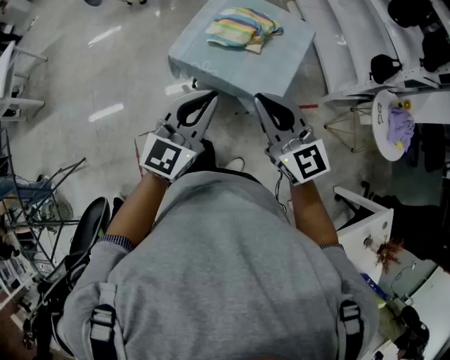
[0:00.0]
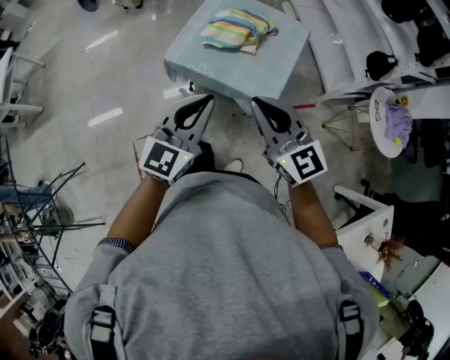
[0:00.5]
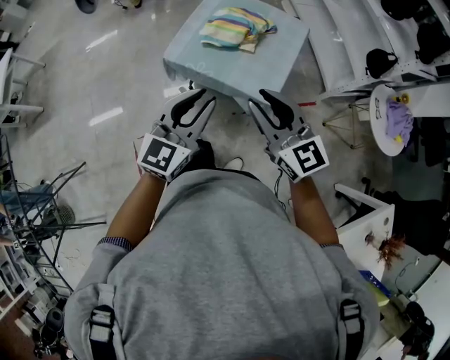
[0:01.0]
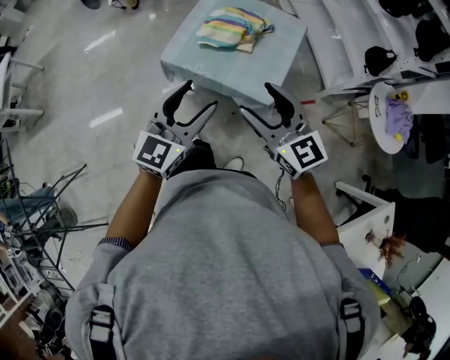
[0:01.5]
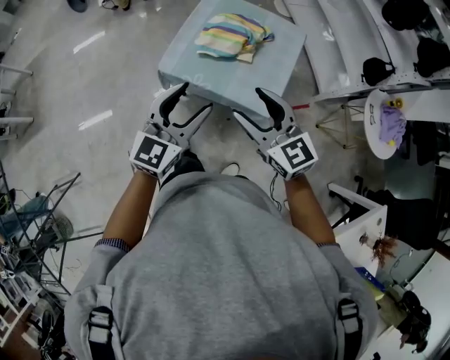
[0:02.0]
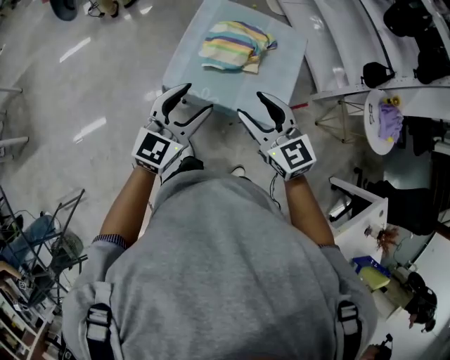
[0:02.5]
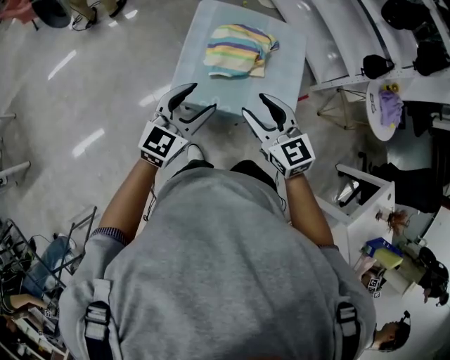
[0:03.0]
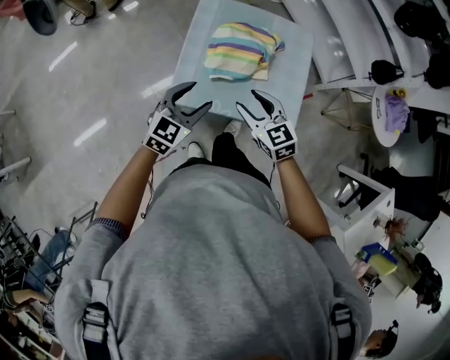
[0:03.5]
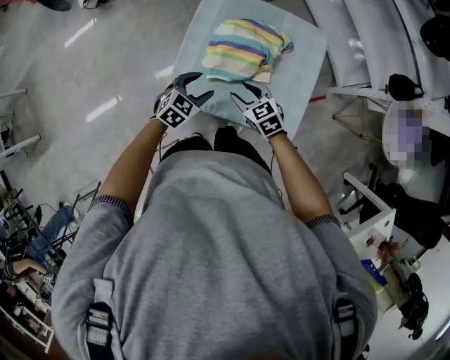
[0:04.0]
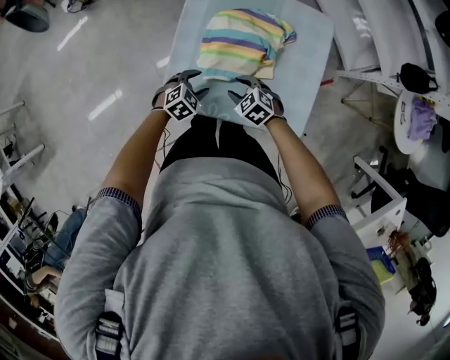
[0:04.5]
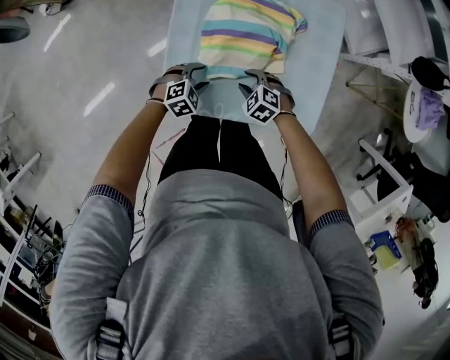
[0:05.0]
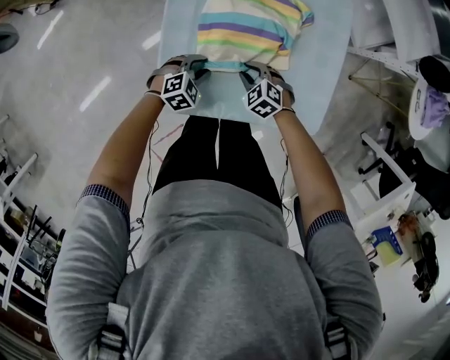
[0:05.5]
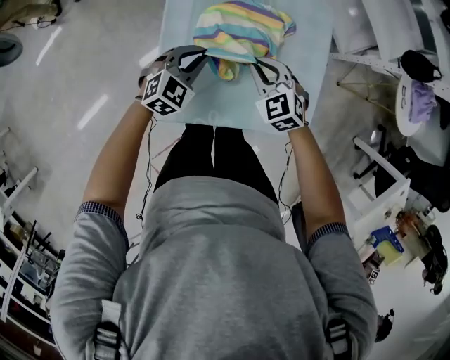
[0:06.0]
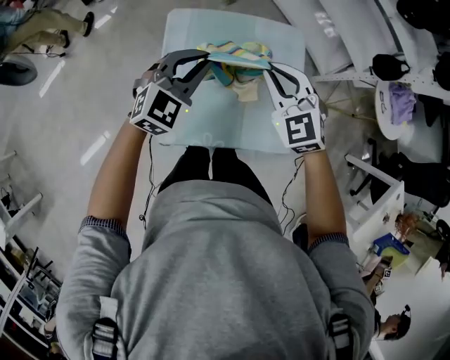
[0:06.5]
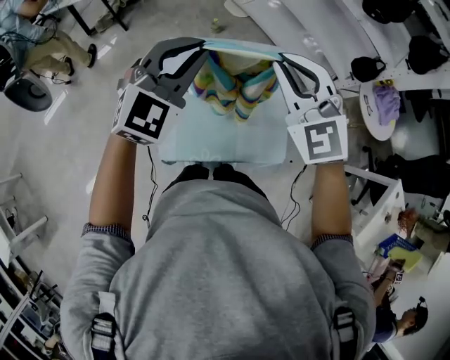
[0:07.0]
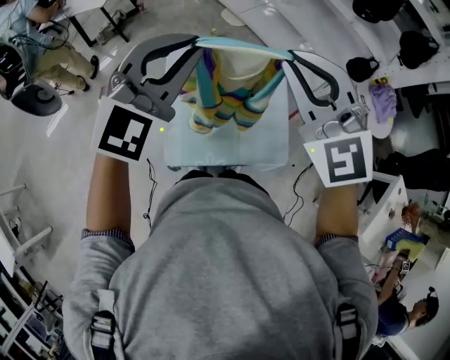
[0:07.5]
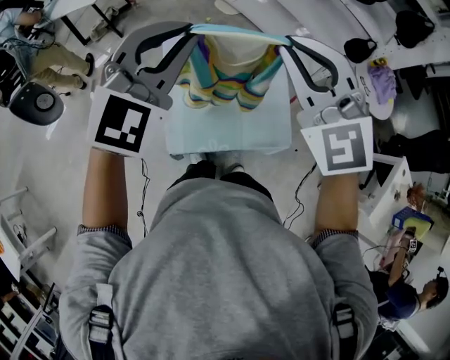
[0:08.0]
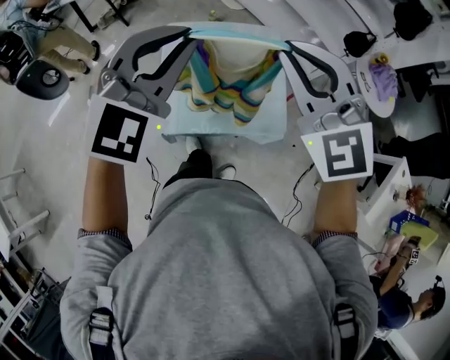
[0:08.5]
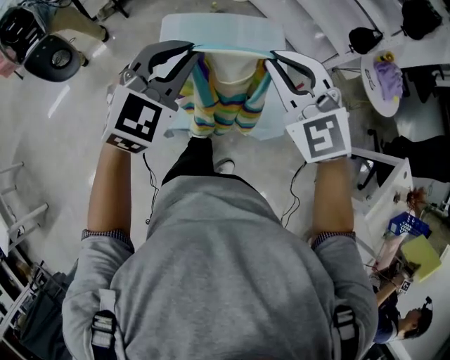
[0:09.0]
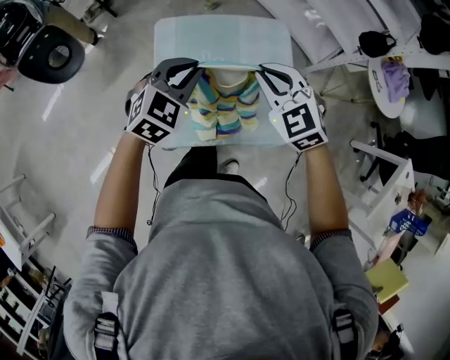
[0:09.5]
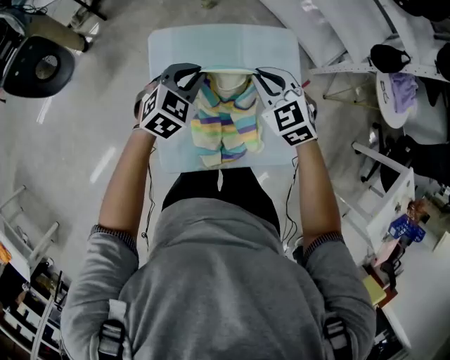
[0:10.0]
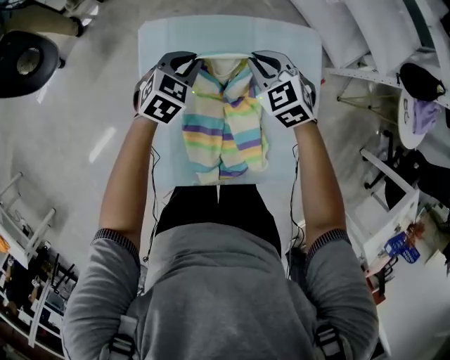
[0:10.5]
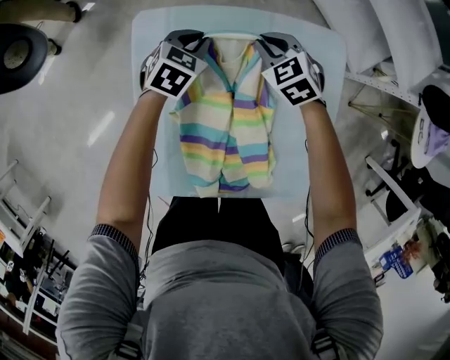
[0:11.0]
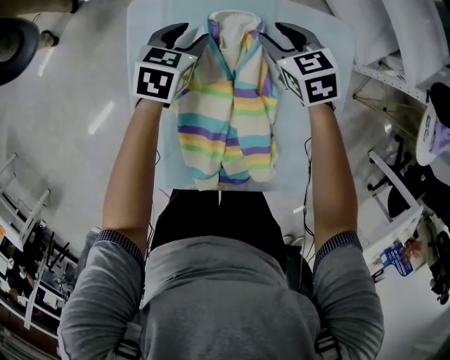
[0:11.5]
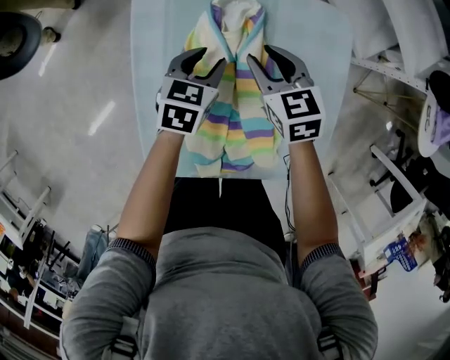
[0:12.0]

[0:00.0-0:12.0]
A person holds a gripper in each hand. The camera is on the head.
0:00.0 to 0:02.0: Both grippers move forward, roughly 10 cm. The left gripper opens up. The right gripper opens up.
0:02.0 to 0:04.0: The grippers both shift forward and downward by about 40 cm. The right gripper turns by about 30 degrees. The left gripper tips its fingers downward by some 40 degrees.
0:04.0 to 0:06.0: The two grippers go approximately 15 cm forward. The right gripper goes downward and returns, approximately 20 cm each way, rotates about 20 degrees, and closes up, while the left gripper moves approximately 20 cm downward and comes back, changes its angle by about 20 degrees, and closes up.
0:06.0 to 0:08.0: The two grippers go some 50 cm upward. The left gripper swivels roughly 30 degrees; the right gripper points its fingers roughly 30 degrees further upward.
0:08.0 to 0:10.0: Both grippers travel together downward and forward, some 40 cm. The left gripper angles its fingers downward, by about 30 degrees. Meanwhile the right gripper points its fingers roughly 30 degrees further downward.
0:10.0 to 0:12.0: The grippers both shift downward by about 20 cm. The left gripper rotates roughly 40 degrees, and opens. Meanwhile the right gripper rotates roughly 20 degrees, and opens its fingers.

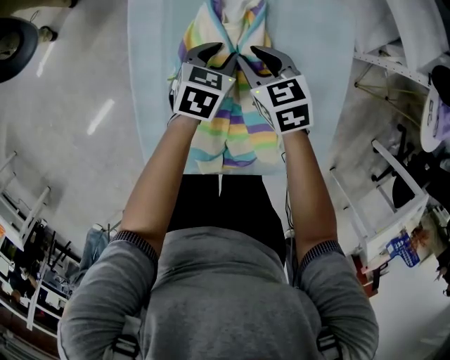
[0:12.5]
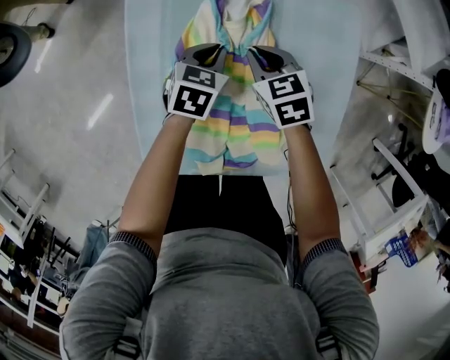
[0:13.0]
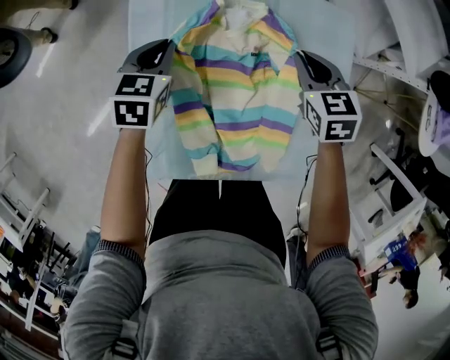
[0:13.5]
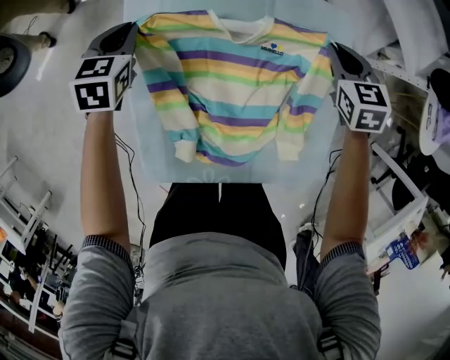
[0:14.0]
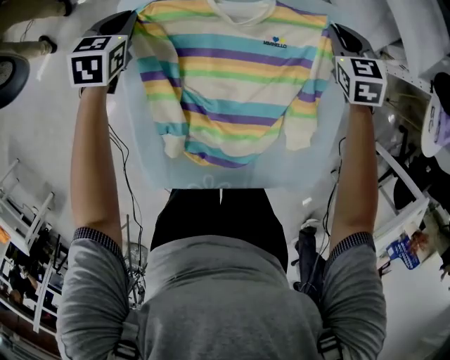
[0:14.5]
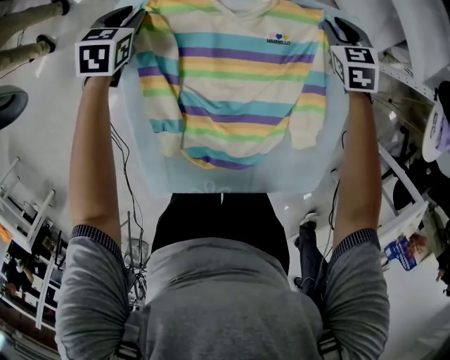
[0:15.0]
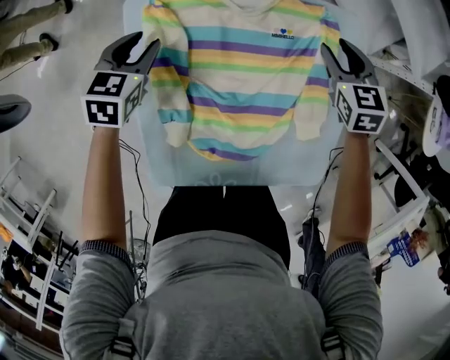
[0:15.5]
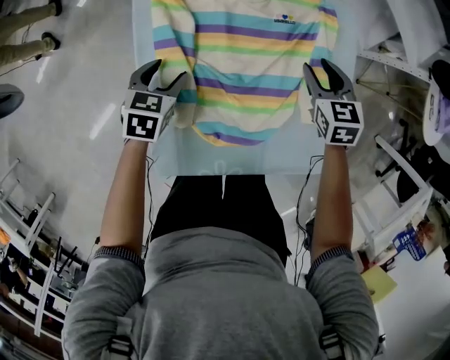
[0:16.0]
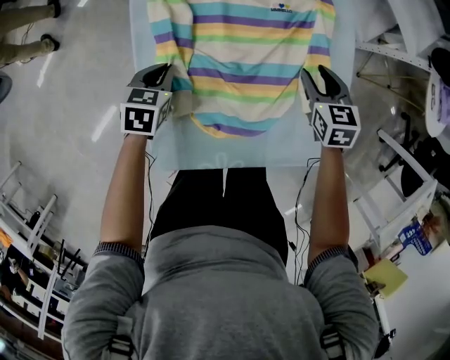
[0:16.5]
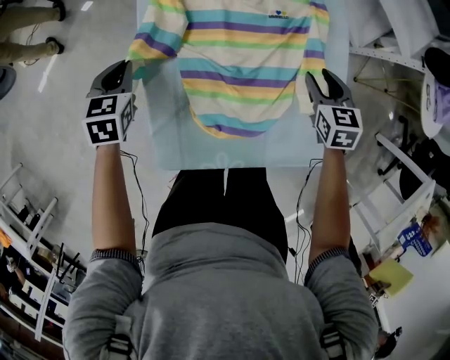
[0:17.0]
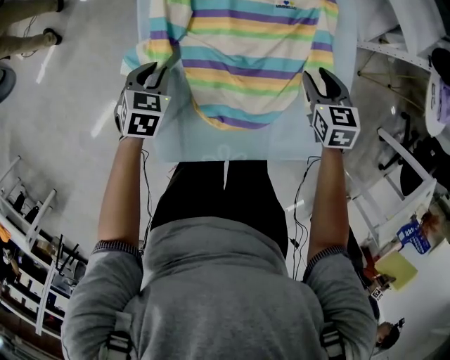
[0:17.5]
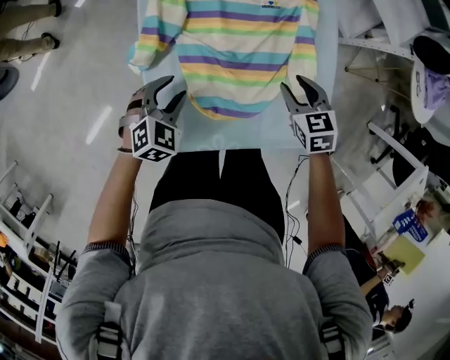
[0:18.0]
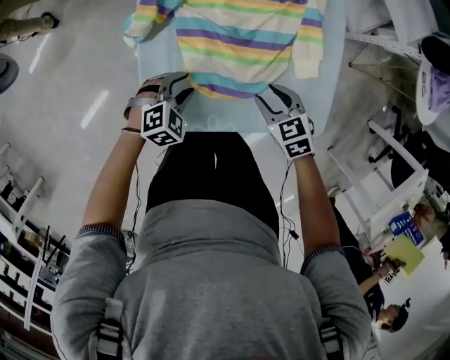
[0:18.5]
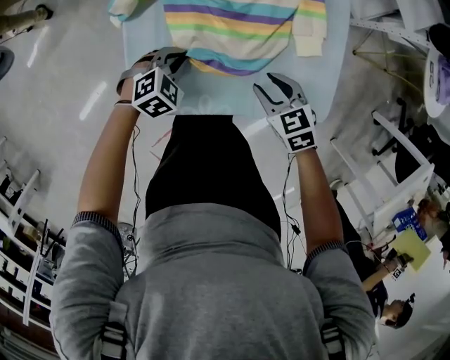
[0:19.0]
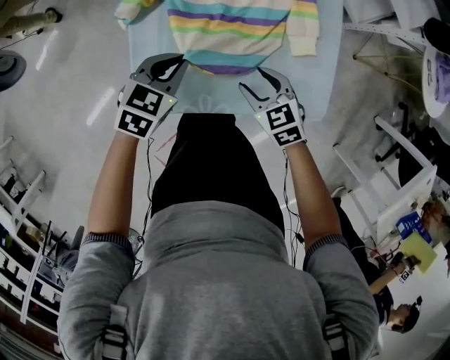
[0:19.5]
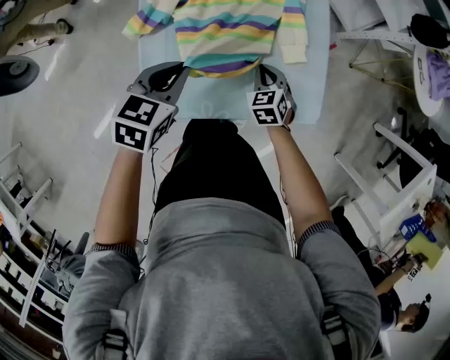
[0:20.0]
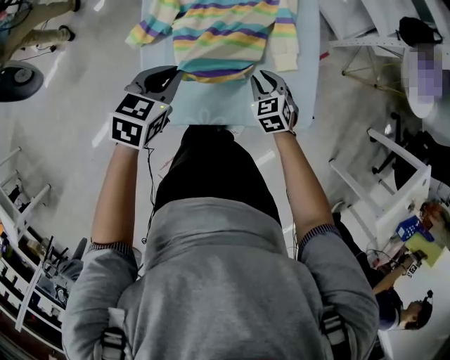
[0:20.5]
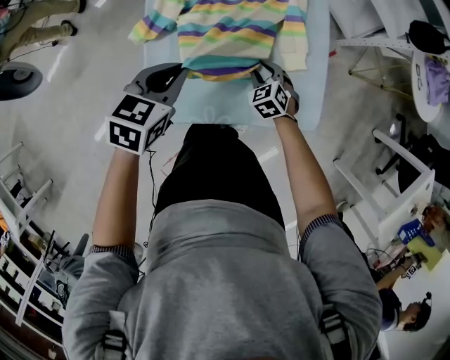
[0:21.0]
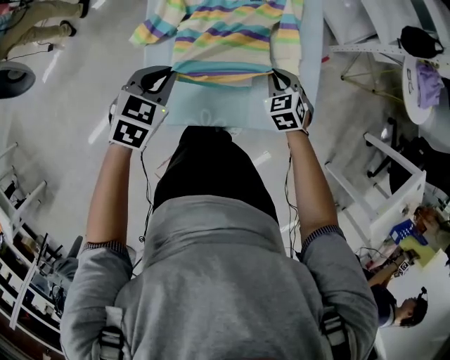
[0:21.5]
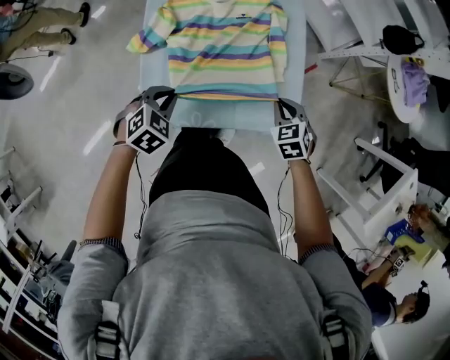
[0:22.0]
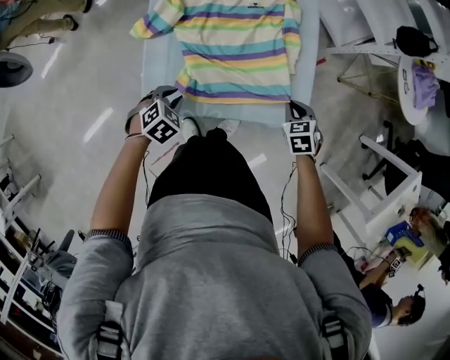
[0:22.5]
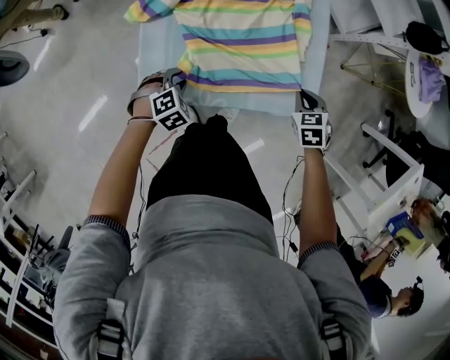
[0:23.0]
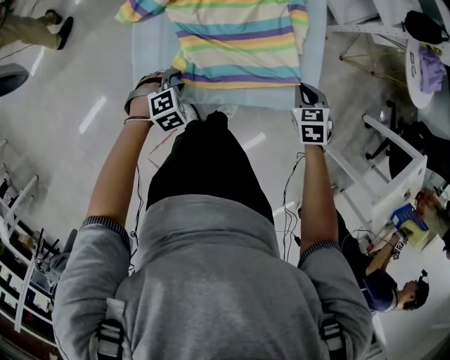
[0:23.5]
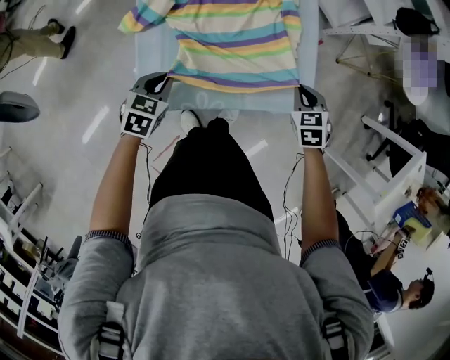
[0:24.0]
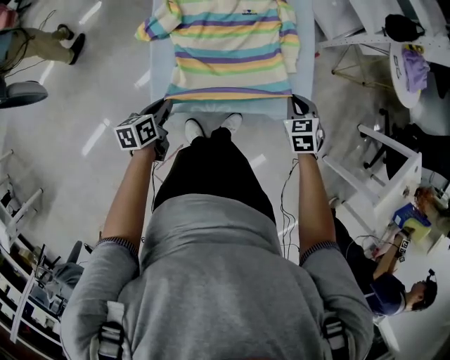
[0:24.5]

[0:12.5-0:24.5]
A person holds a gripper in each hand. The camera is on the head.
0:12.5 to 0:14.5: The right gripper moves to the right and forward, approximately 25 cm, and swivels about 20 degrees. Meanwhile the left gripper shifts about 25 cm to the left and forward.
0:14.5 to 0:16.5: The two grippers go some 20 cm backward. The right gripper opens up. Meanwhile the left gripper opens, then closes again.
0:16.5 to 0:18.5: The right gripper is displaced backward and to the left by approximately 20 cm, and turns by approximately 20 degrees; the left gripper shifts roughly 20 cm backward and to the right, rolls clockwise, seen from behind, by roughly 40 degrees, and opens up.
0:18.5 to 0:20.5: The right gripper moves approximately 5 cm, while the left gripper heads upward, covering about 20 cm, swivels some 40 degrees, and closes up.
0:20.5 to 0:22.5: The right gripper moves to the right and backward, roughly 15 cm, while the left gripper travels downward and backward by about 15 cm, and turns by about 30 degrees.
0:22.5 to 0:24.5: The right gripper moves upward, some 5 cm; the left gripper is displaced to the left by some 10 cm, reaches some 5 cm downward, then returns, and rotates around the line of its fingers by approximately 60 degrees, counterclockwise from behind.

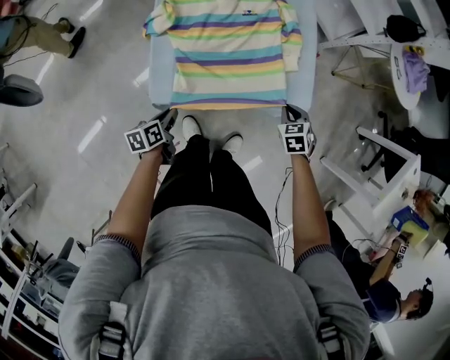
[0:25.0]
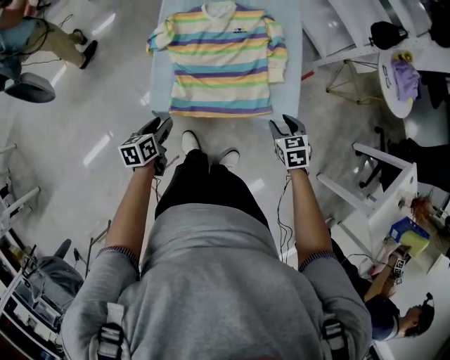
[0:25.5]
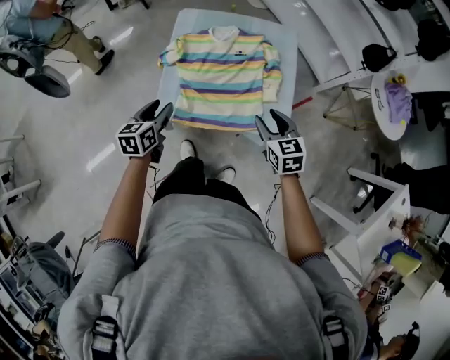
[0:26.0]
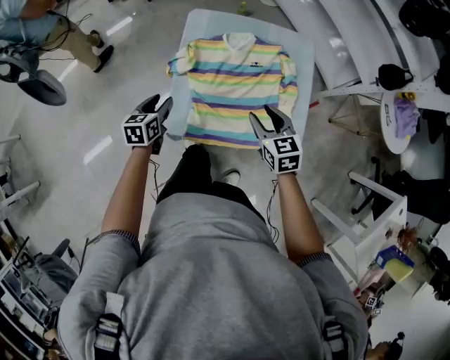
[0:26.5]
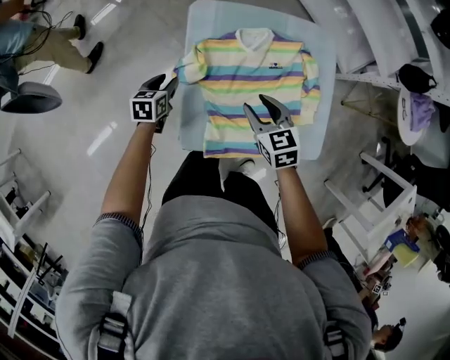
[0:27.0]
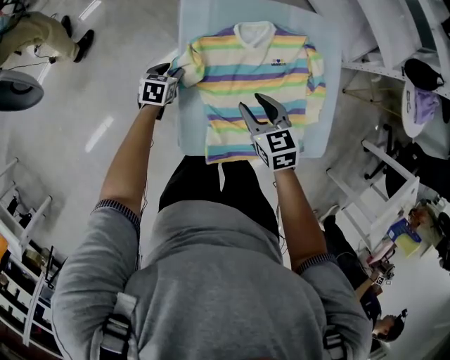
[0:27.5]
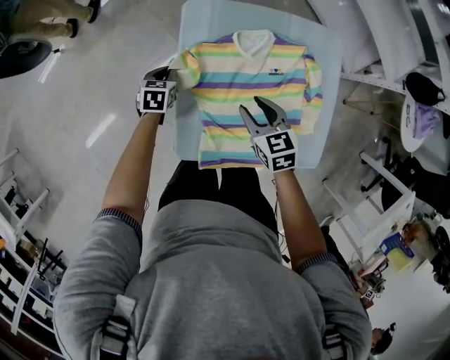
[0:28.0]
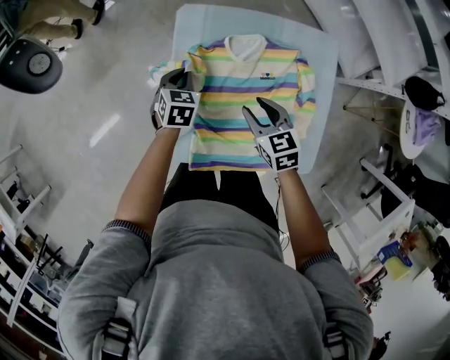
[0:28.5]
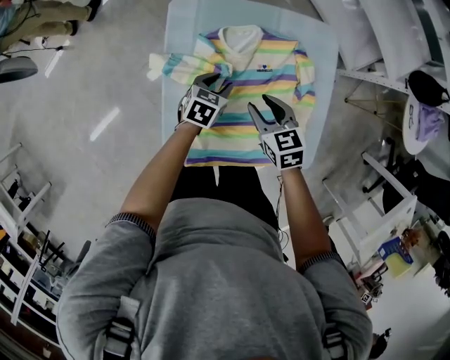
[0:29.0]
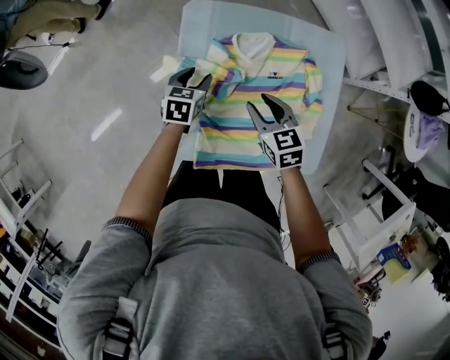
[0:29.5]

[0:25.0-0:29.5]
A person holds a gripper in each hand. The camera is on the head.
0:25.0 to 0:27.0: The right gripper moves about 35 cm, rotates approximately 30 degrees, and opens up; the left gripper travels upward and back again, about 25 cm each way, rotates roughly 30 degrees, and opens its fingers.
0:27.0 to 0:29.5: The right gripper moves forward, about 5 cm, while the left gripper goes approximately 15 cm to the right, and closes and opens again.
